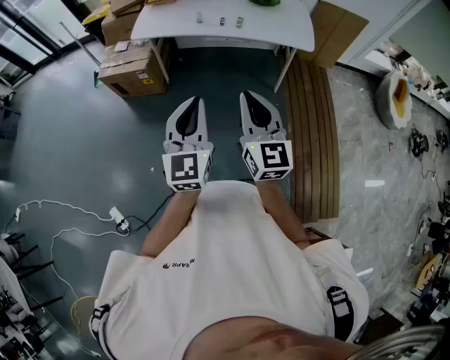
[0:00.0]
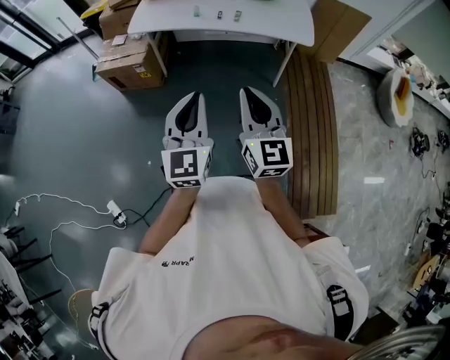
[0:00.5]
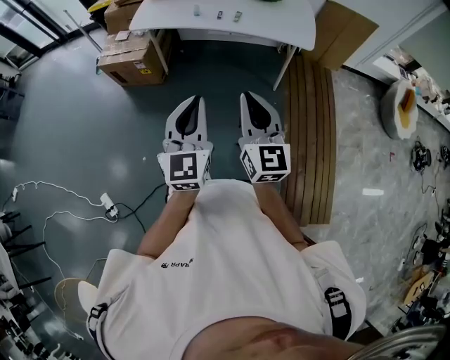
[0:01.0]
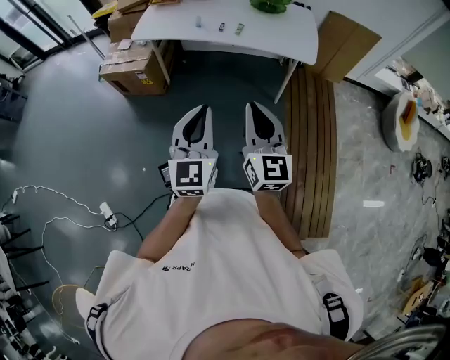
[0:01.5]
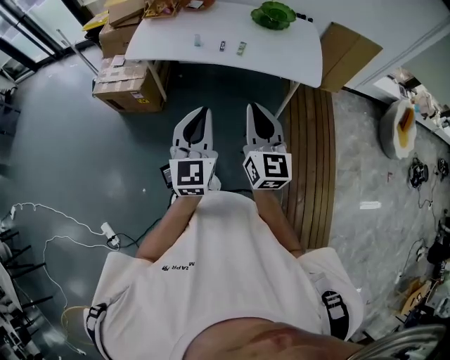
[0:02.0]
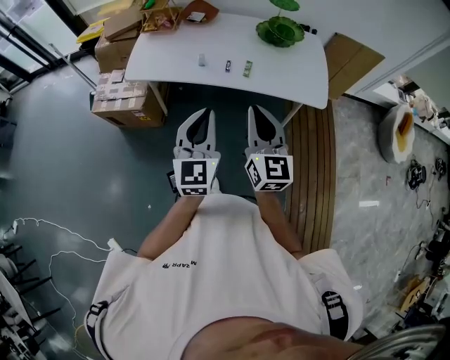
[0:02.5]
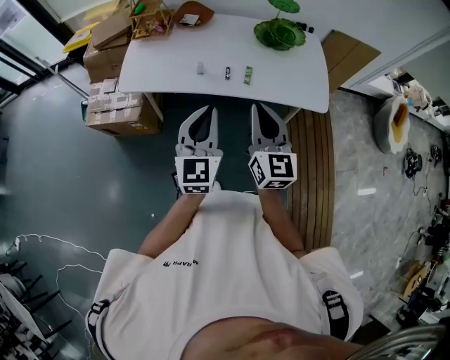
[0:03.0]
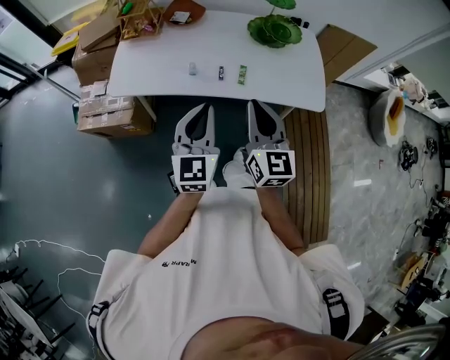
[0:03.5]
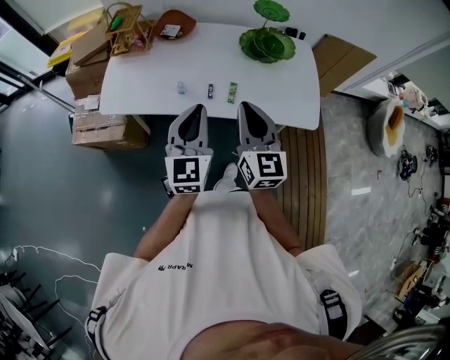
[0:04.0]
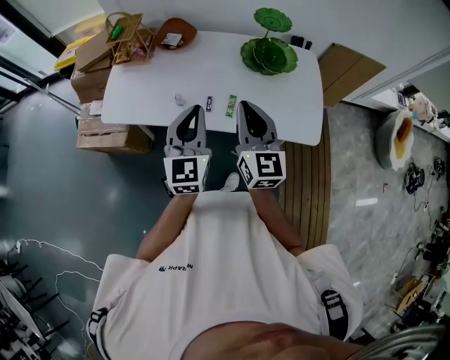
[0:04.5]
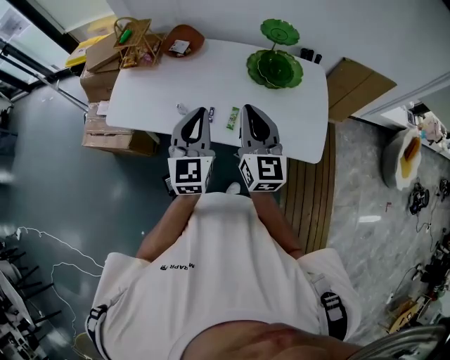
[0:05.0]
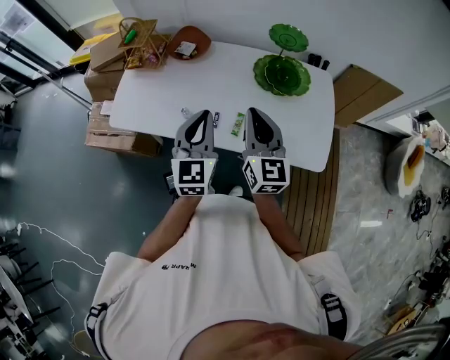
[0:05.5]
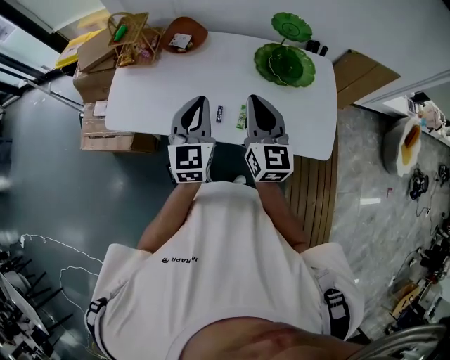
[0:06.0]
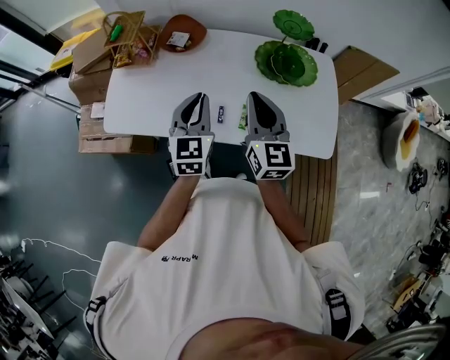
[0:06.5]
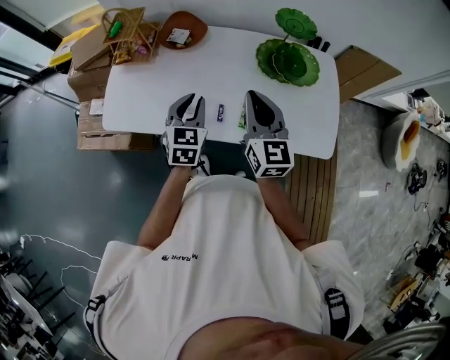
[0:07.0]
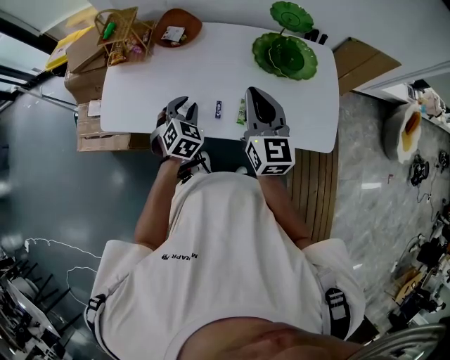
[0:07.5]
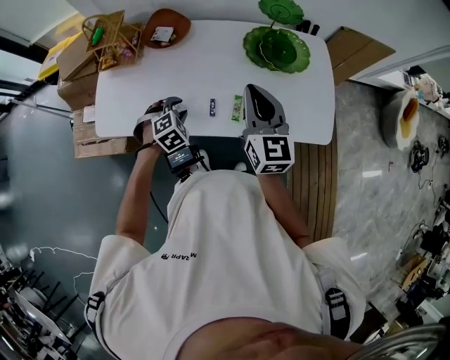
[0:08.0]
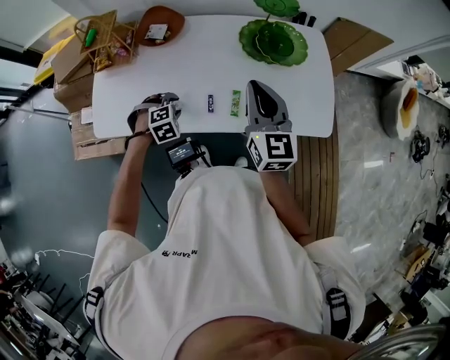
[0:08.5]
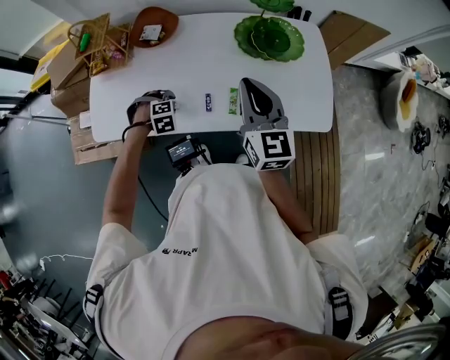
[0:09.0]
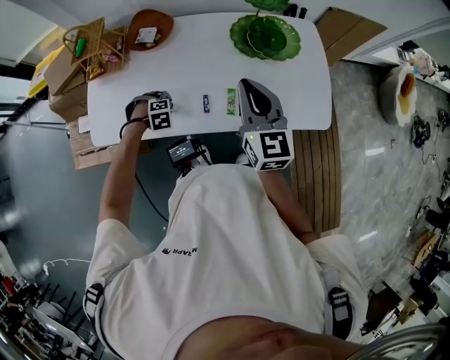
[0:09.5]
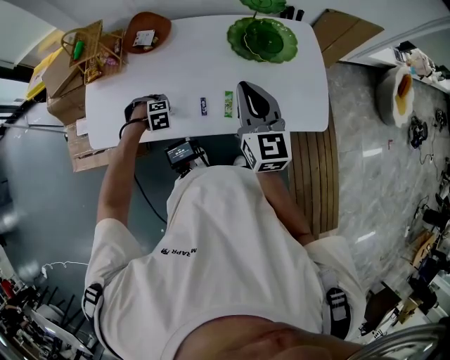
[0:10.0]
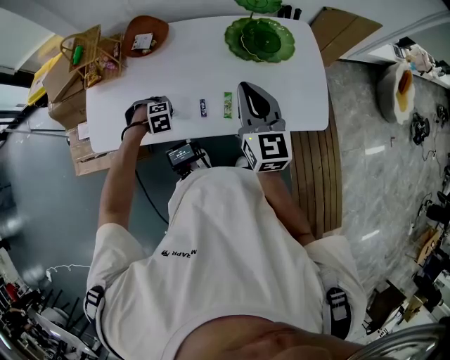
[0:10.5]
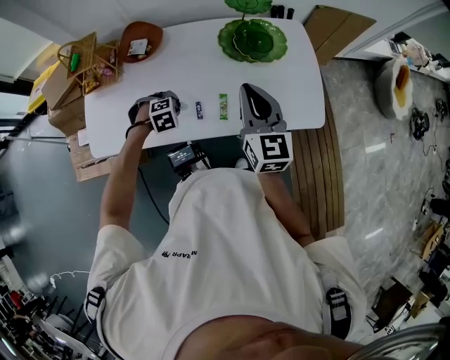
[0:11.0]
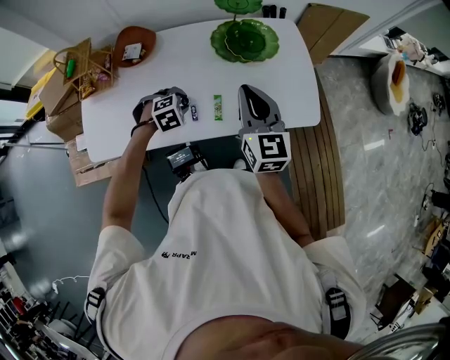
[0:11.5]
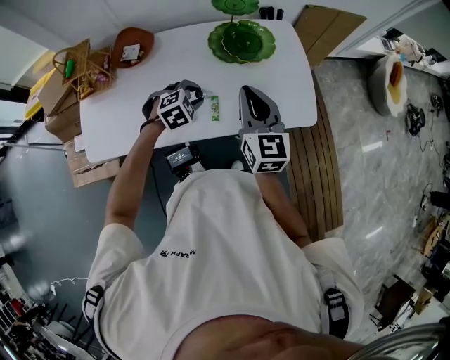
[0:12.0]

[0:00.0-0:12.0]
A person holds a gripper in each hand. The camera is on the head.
0:00.0 to 0:02.0: The left gripper heads forward, covering roughly 20 cm. Meanwhile the right gripper is displaced forward and to the right by roughly 20 cm.
0:02.0 to 0:04.0: The grippers both shift forward by approximately 35 cm.
0:04.0 to 0:06.0: Both grippers move forward, about 15 cm.
0:06.0 to 0:08.0: The left gripper moves downward, approximately 25 cm, angles its fingers downward, by about 50 degrees, and opens.
0:08.0 to 0:10.0: The left gripper is displaced downward by some 10 cm, and rotates about 30 degrees.
0:10.0 to 0:12.0: The left gripper changes place by roughly 25 cm, and rotates roughly 30 degrees; the right gripper moves about 5 cm.

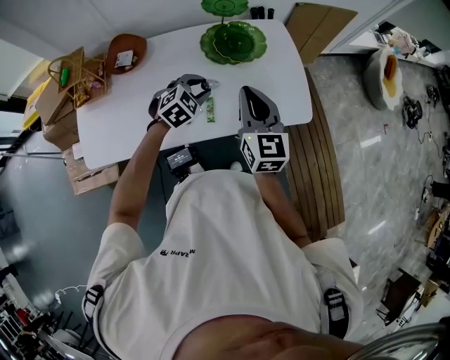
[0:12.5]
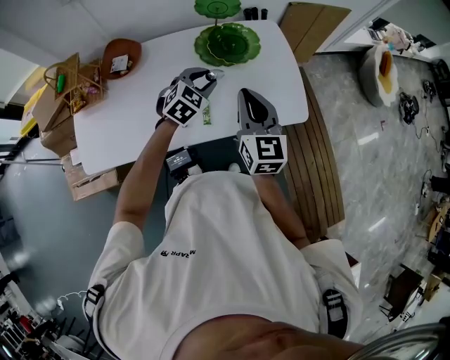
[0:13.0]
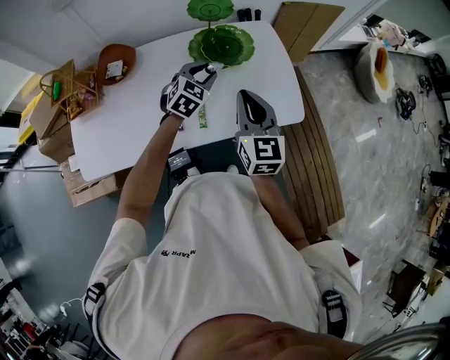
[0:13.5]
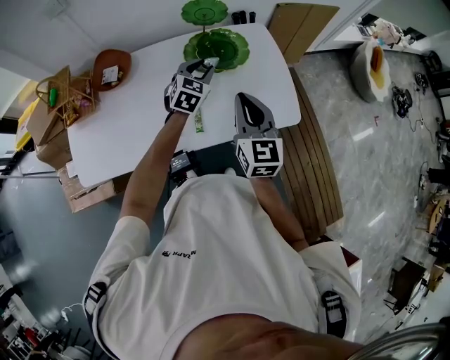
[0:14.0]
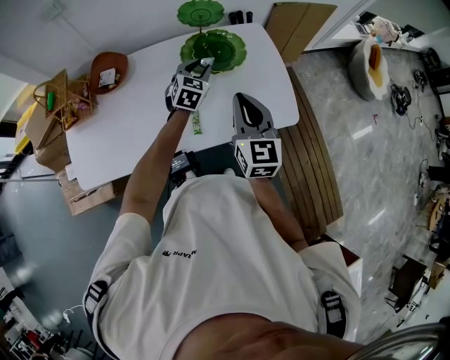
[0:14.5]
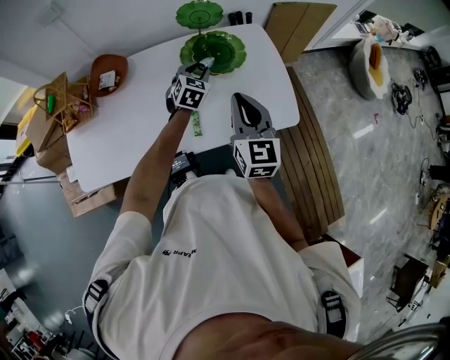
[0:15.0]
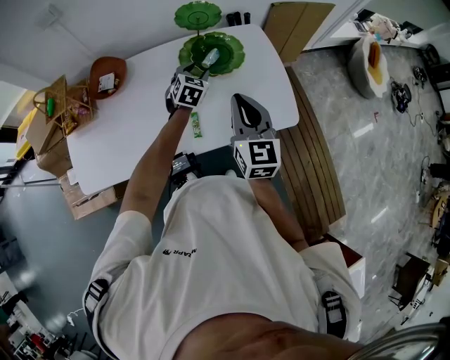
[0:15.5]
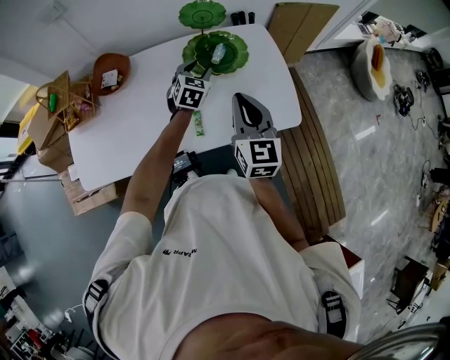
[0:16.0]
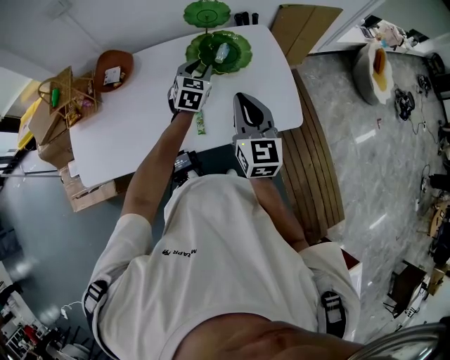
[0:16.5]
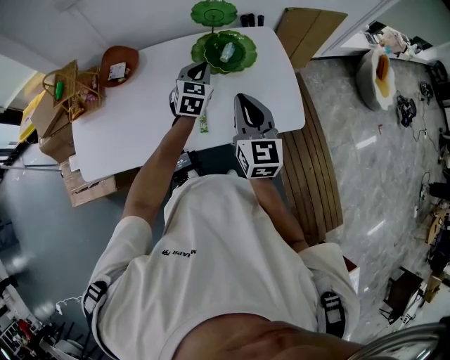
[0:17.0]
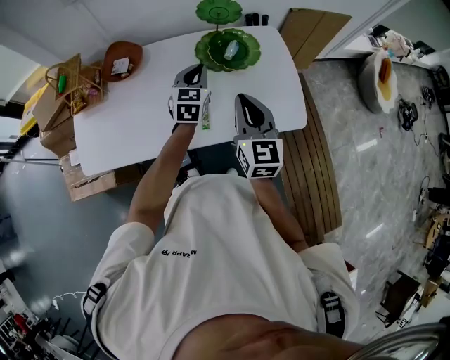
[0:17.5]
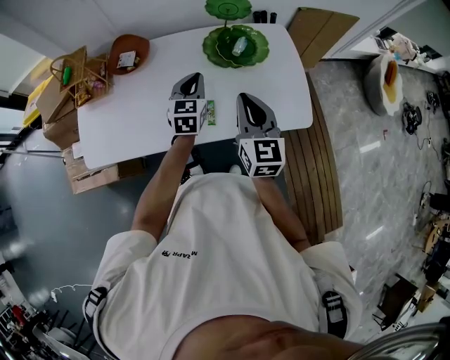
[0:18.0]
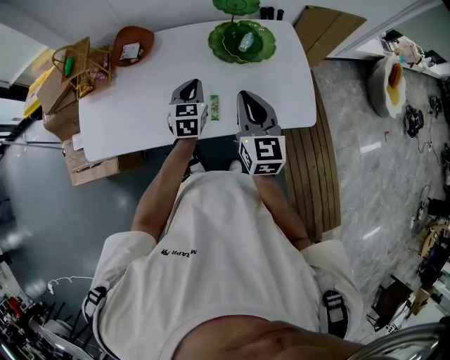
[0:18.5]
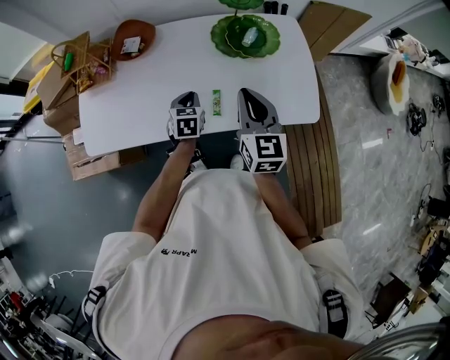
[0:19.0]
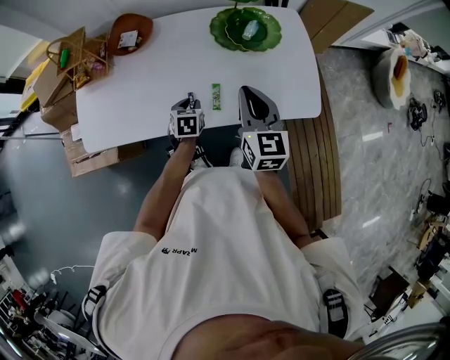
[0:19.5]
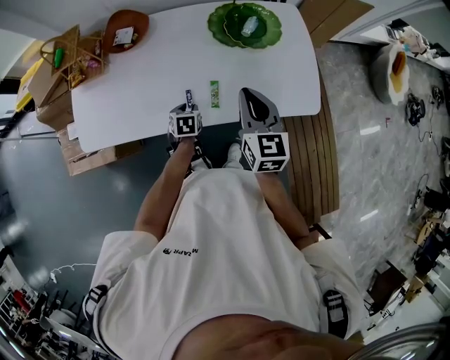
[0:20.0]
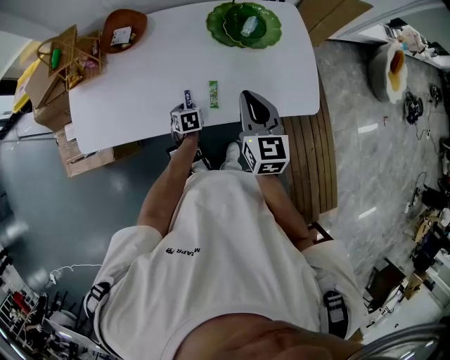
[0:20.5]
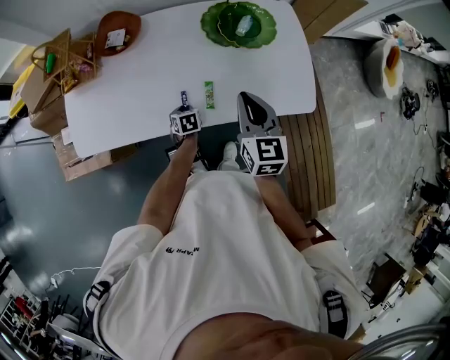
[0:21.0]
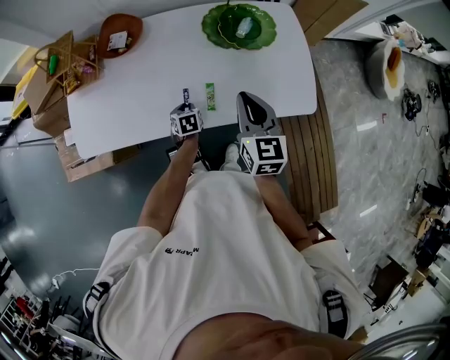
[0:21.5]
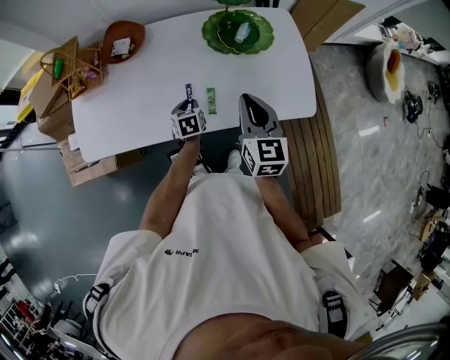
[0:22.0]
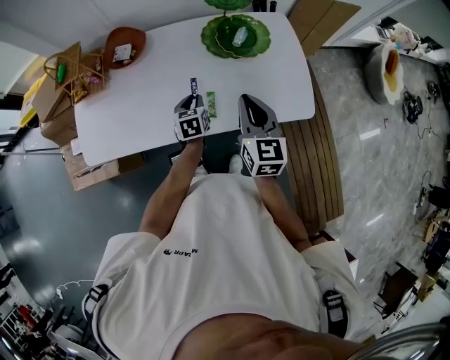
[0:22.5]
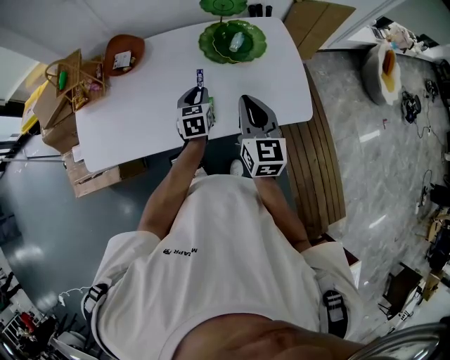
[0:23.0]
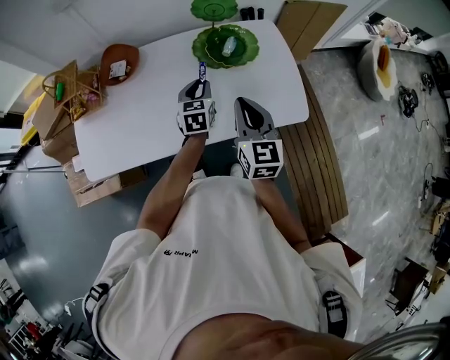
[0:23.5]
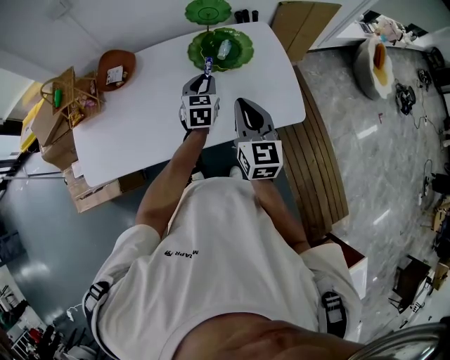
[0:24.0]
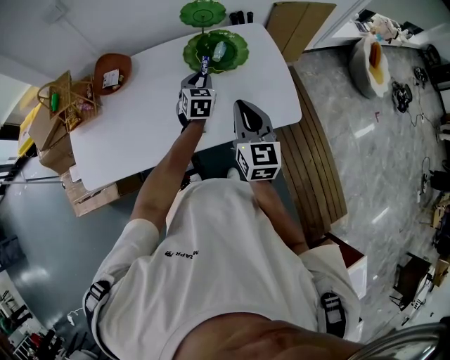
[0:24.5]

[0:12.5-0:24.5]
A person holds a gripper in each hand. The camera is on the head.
0:12.5 to 0:14.5: The left gripper heads forward, covering roughly 15 cm, and rotates some 30 degrees.
0:14.5 to 0:16.5: The grippers move only a little.
0:16.5 to 0:18.5: The right gripper moves roughly 5 cm. The left gripper is displaced backward and to the left by some 15 cm, swivels some 20 degrees, and closes its fingers.
0:18.5 to 0:20.5: The left gripper goes about 25 cm downward, tips its fingers downward by about 30 degrees, and opens up.
0:20.5 to 0:22.5: The left gripper moves upward, about 15 cm.
0:22.5 to 0:24.5: The left gripper moves forward, to the right and upward, some 15 cm, and rotates approximately 30 degrees.

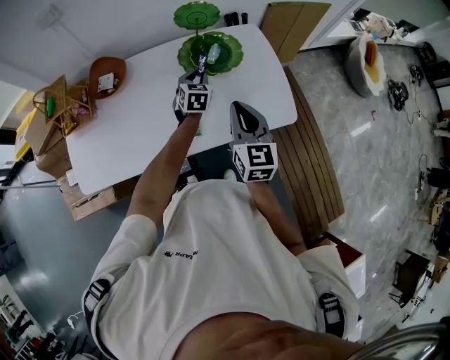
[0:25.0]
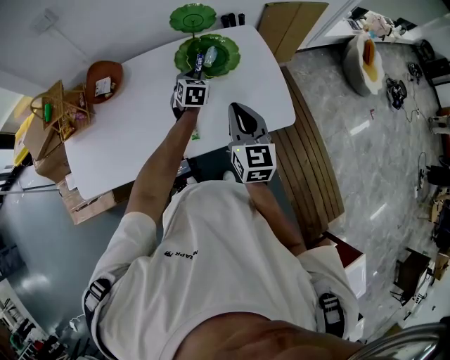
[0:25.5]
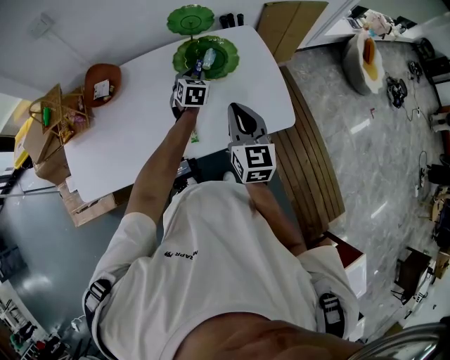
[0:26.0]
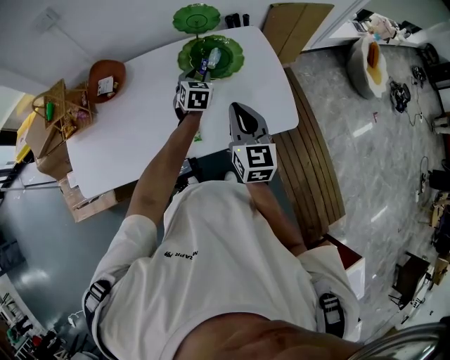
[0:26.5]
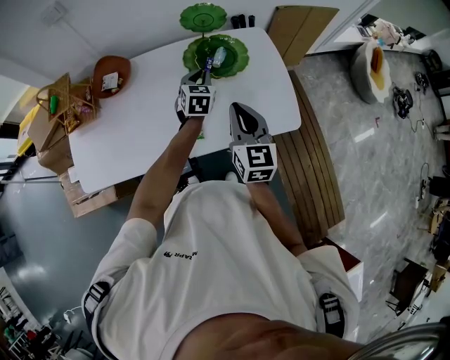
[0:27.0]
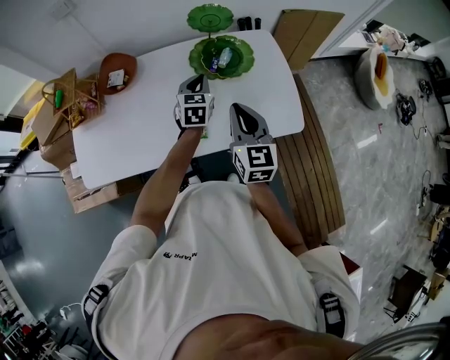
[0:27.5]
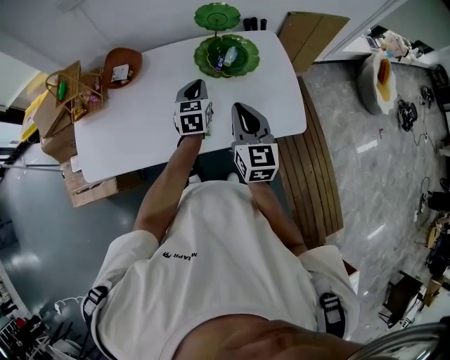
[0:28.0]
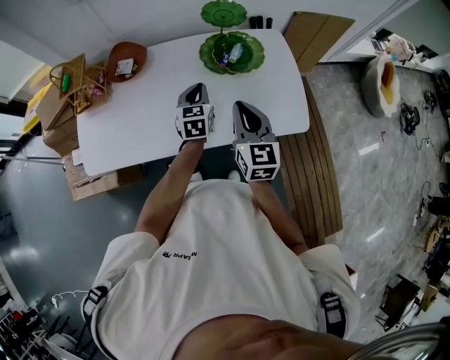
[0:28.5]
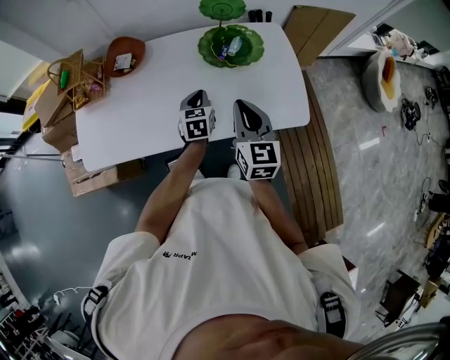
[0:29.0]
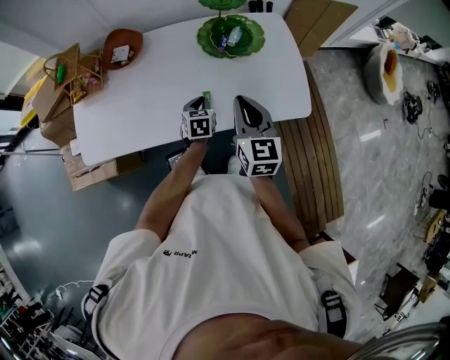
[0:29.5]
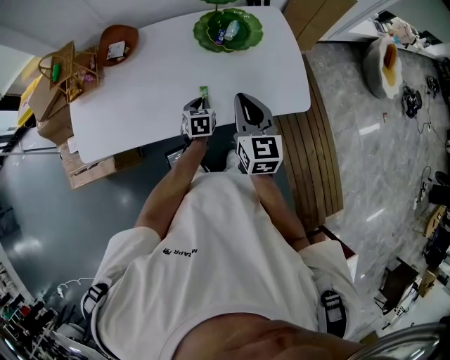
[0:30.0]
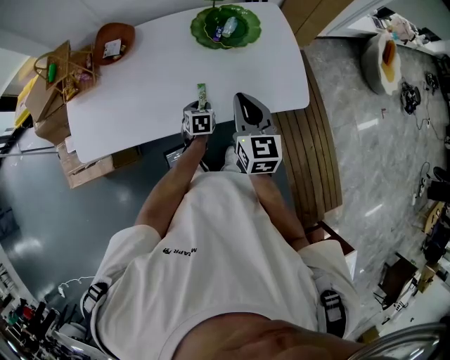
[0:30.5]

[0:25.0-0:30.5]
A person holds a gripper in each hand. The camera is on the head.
0:25.0 to 0:27.0: The grippers move only a little.
0:27.0 to 0:28.5: The left gripper goes about 10 cm backward and to the left.
0:28.5 to 0:30.5: The left gripper is displaced downward and backward by some 20 cm, rotates some 30 degrees, and opens.
